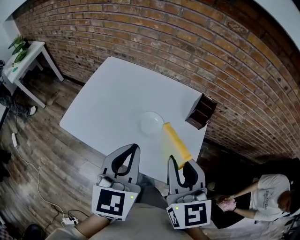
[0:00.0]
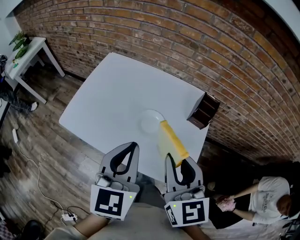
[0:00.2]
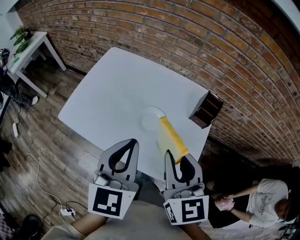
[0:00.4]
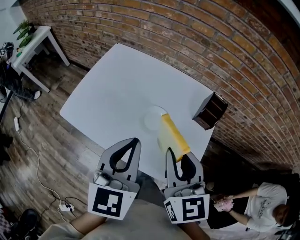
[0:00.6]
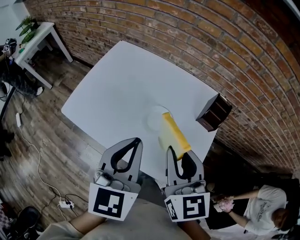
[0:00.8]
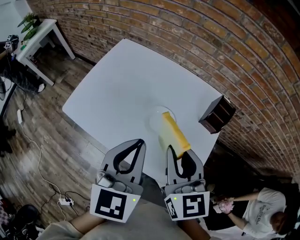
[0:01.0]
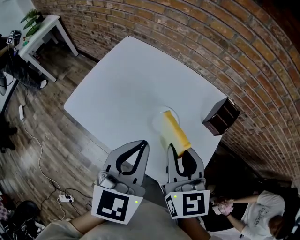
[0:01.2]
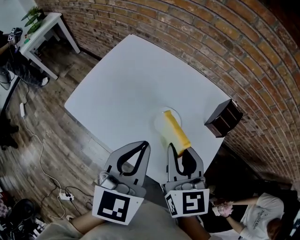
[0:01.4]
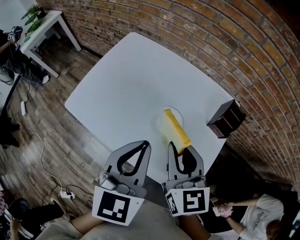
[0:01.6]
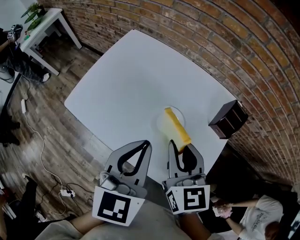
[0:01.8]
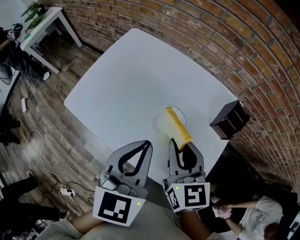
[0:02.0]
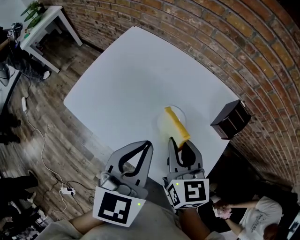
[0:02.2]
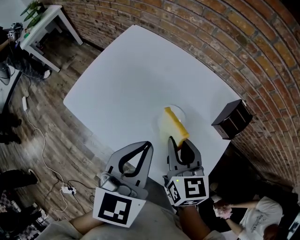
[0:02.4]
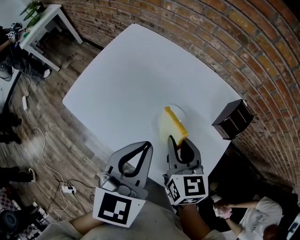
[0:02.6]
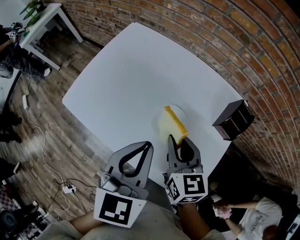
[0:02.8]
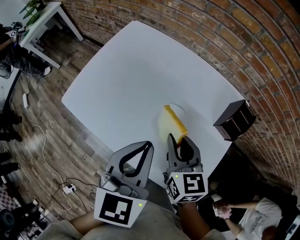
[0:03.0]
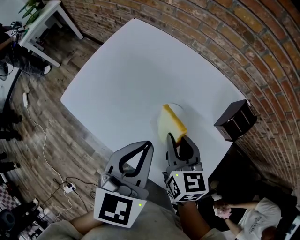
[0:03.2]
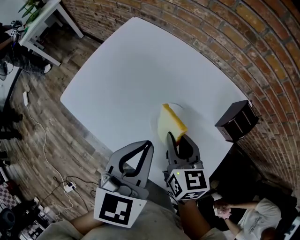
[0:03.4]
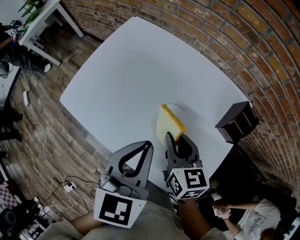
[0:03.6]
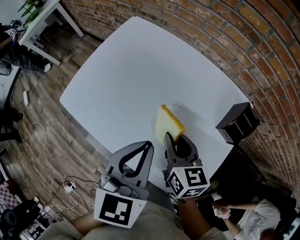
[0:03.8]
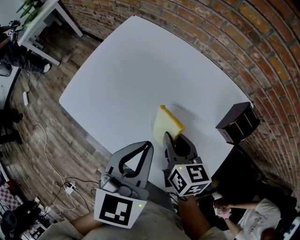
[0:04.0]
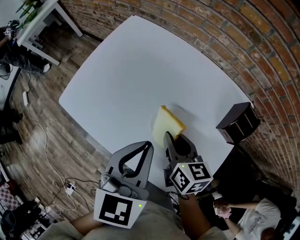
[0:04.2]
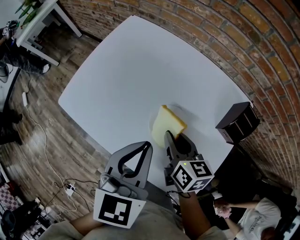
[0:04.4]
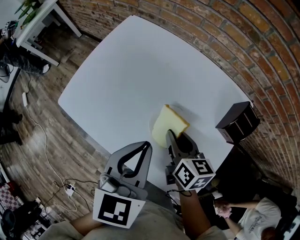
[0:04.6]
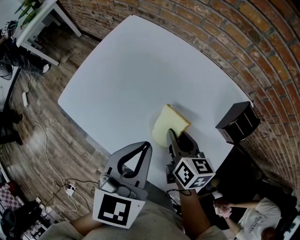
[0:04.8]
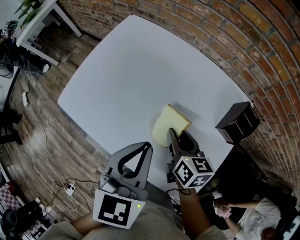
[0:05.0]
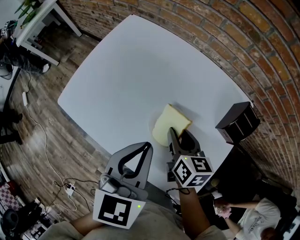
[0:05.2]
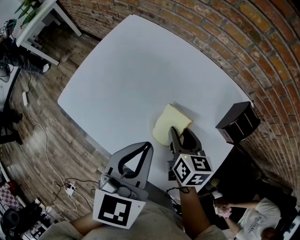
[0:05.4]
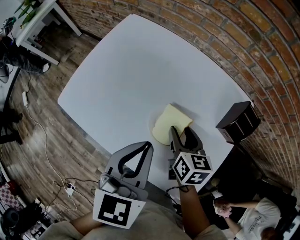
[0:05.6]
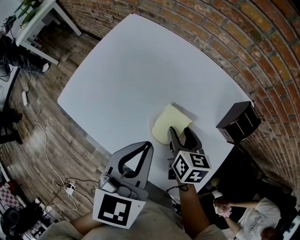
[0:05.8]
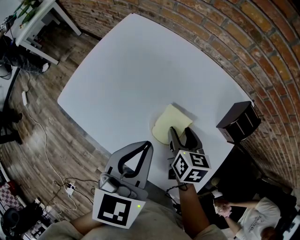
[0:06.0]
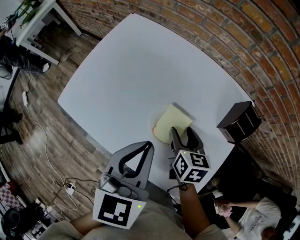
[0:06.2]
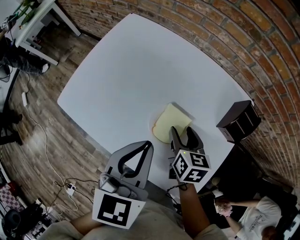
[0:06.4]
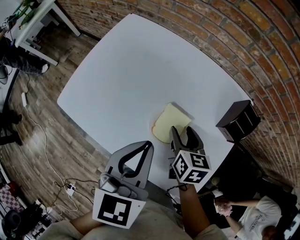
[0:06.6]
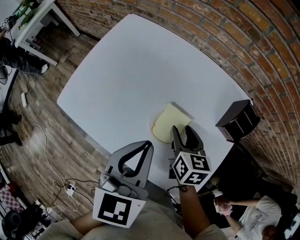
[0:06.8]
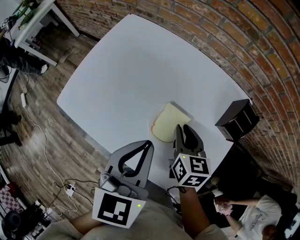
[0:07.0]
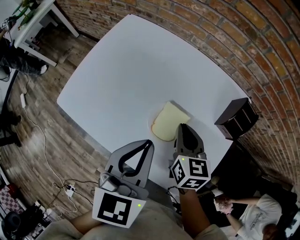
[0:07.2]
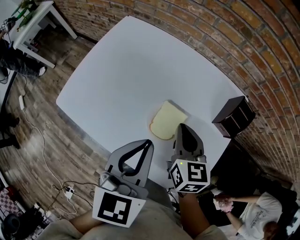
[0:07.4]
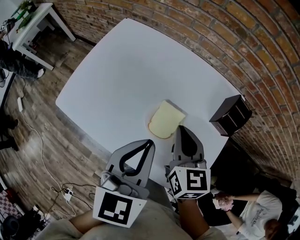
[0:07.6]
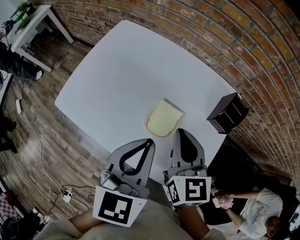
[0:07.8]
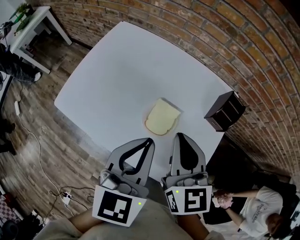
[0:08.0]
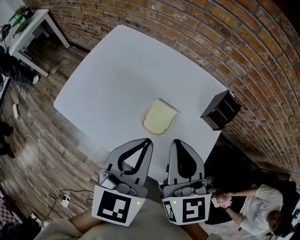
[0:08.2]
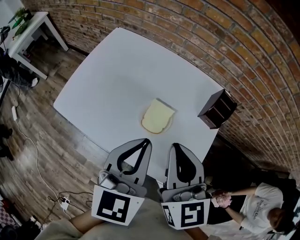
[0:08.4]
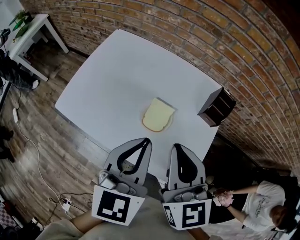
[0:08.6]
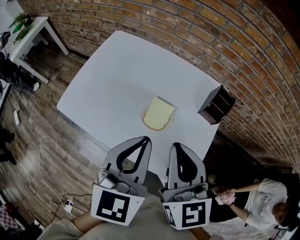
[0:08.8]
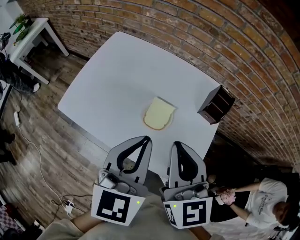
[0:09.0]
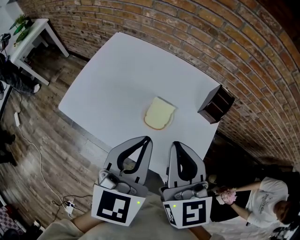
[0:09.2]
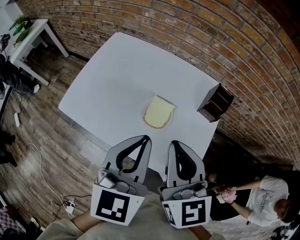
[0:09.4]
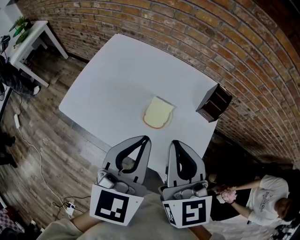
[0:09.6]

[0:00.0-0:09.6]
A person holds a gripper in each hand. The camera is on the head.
0.0 to 1.6 s: The left gripper shifts some 5 cm forward. The right gripper travels forward and downward by about 15 cm.
1.6 to 3.2 s: The left gripper shifts by about 5 cm. The right gripper shifts approximately 10 cm downward.
3.2 to 4.8 s: The right gripper is displaced downward by approximately 5 cm.
4.8 to 6.4 s: The right gripper opens up.
6.4 to 8.0 s: The left gripper ends up approximately 5 cm from where it was. The right gripper shifts about 20 cm upward, rotates about 30 degrees, and closes up.
8.0 to 9.6 s: The left gripper is displaced upward and backward by roughly 5 cm. Meanwhile the right gripper travels backward and upward by approximately 10 cm.

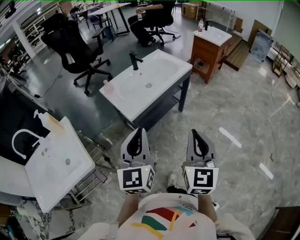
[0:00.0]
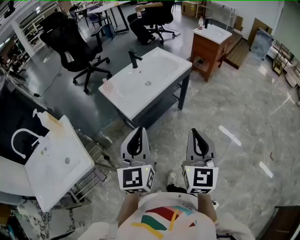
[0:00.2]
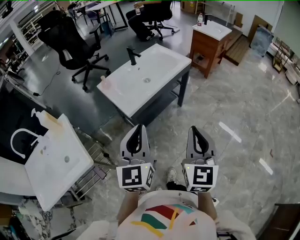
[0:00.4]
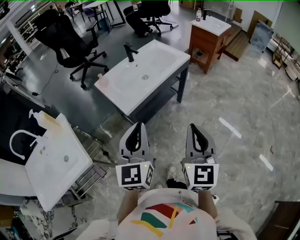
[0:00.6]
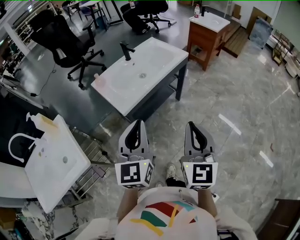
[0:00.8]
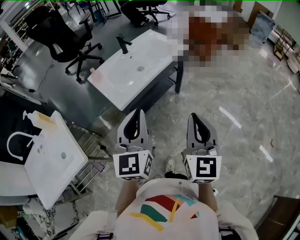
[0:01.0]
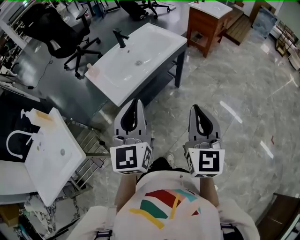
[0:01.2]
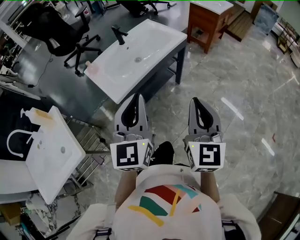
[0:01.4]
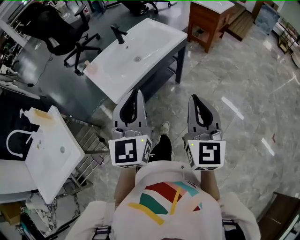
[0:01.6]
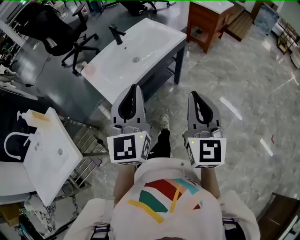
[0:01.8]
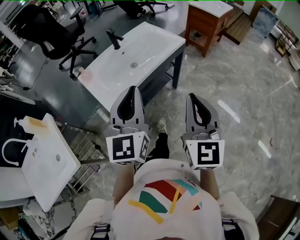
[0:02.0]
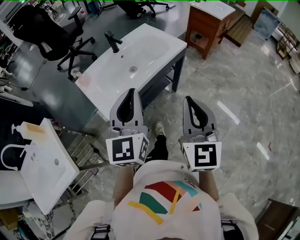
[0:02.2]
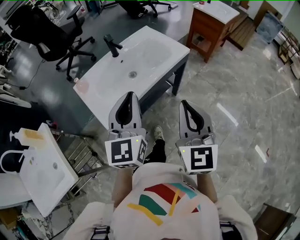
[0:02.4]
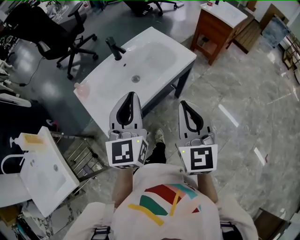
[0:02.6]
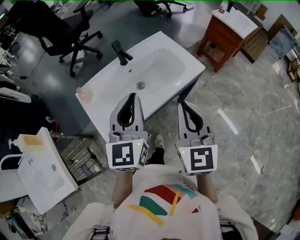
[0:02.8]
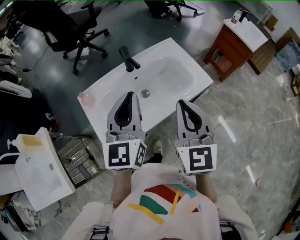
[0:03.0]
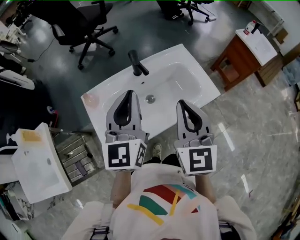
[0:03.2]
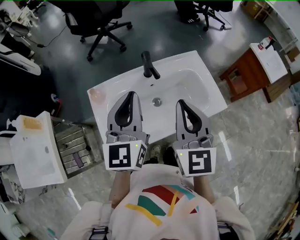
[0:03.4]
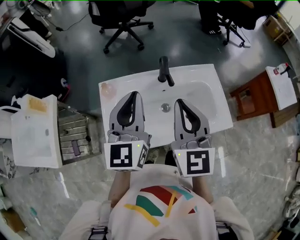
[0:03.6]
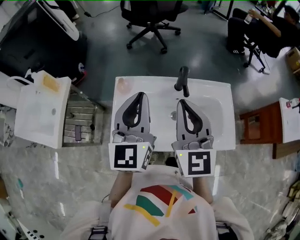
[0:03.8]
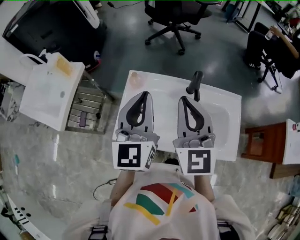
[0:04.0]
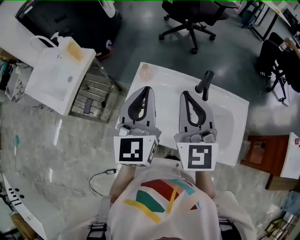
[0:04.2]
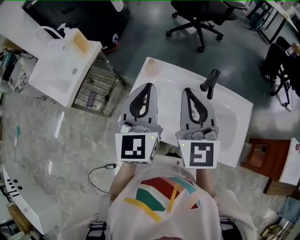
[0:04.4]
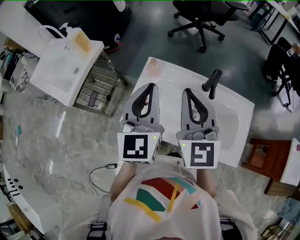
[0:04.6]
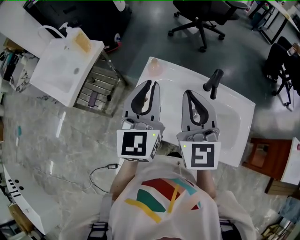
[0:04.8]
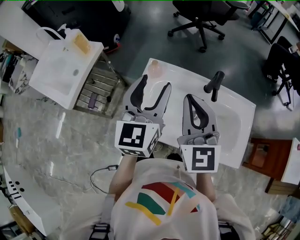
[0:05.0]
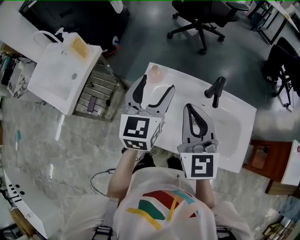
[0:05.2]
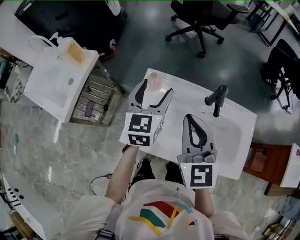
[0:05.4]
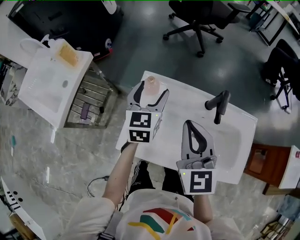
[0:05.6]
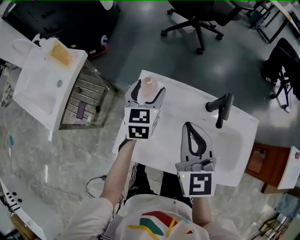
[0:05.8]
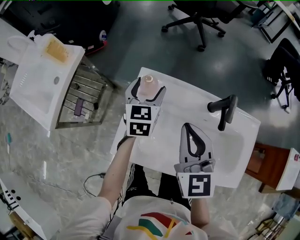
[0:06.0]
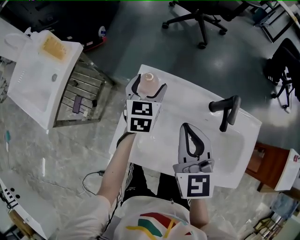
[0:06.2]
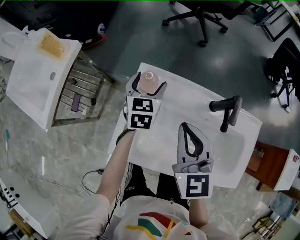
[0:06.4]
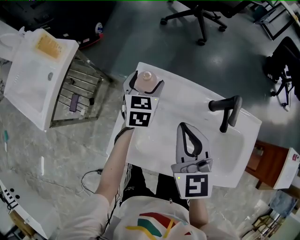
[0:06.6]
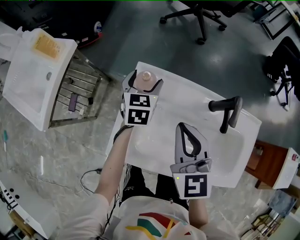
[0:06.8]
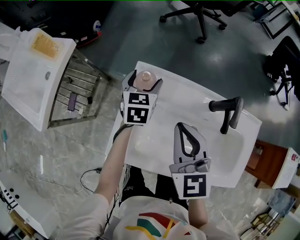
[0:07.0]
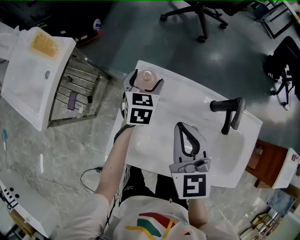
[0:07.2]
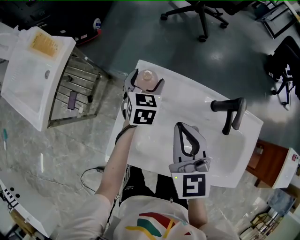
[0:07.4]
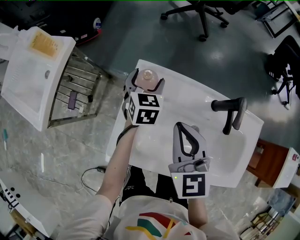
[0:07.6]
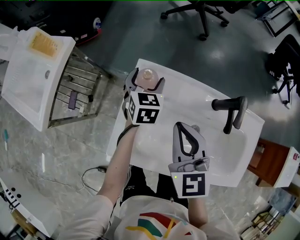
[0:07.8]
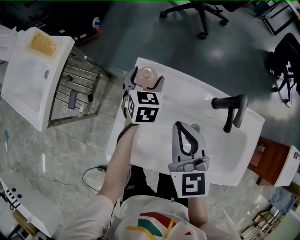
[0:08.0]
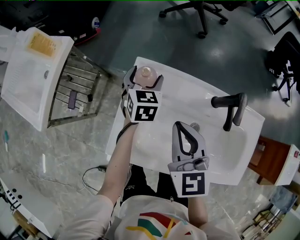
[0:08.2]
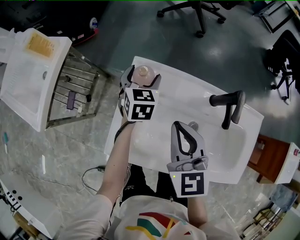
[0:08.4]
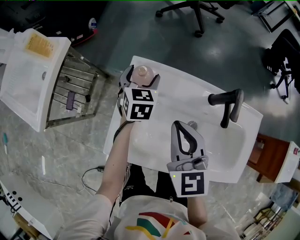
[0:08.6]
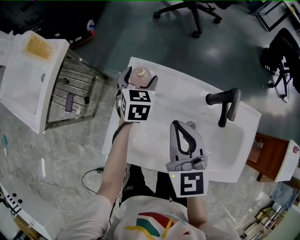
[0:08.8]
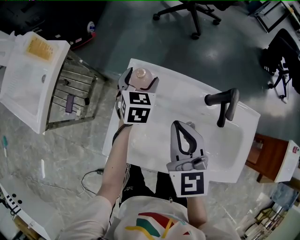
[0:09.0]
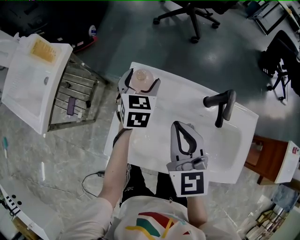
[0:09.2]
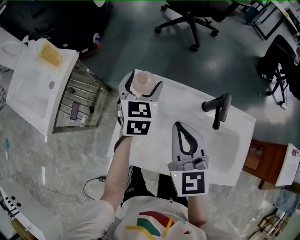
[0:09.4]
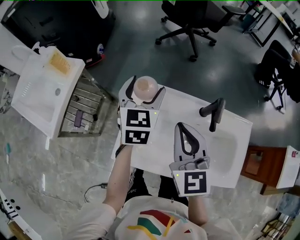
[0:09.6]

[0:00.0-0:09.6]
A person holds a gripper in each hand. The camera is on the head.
0.0 to 1.6 s: The two grippers go about 10 cm forward and to the right.
1.6 to 3.2 s: The grippers both shift forward by roughly 40 cm. The right gripper turns by about 30 degrees.
3.2 to 4.8 s: The right gripper changes place by some 15 cm, and swivels about 50 degrees, while the left gripper shifts by approximately 10 cm, and changes its angle by approximately 40 degrees.
4.8 to 6.4 s: The right gripper is displaced downward and forward by about 15 cm, while the left gripper shifts approximately 35 cm downward and forward, rotates about 30 degrees, and opens its fingers.
6.4 to 8.0 s: The grippers move only a little.
8.0 to 9.6 s: The right gripper travels upward by roughly 10 cm. The left gripper travels upward by approximately 20 cm.

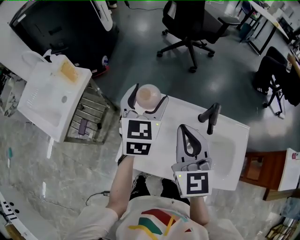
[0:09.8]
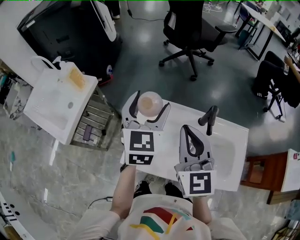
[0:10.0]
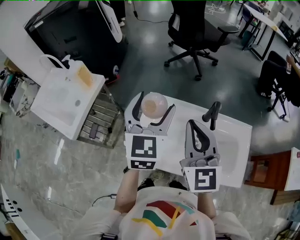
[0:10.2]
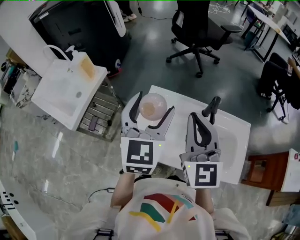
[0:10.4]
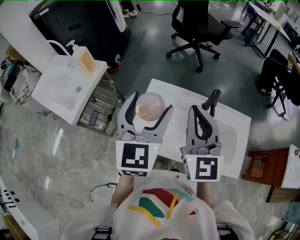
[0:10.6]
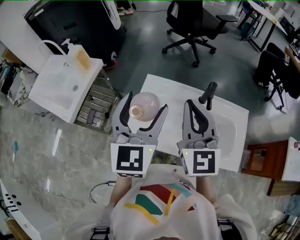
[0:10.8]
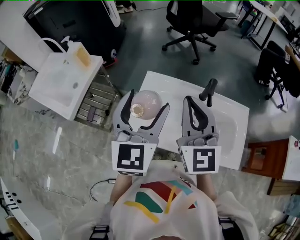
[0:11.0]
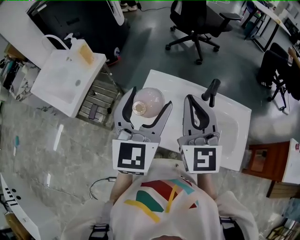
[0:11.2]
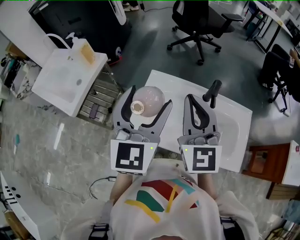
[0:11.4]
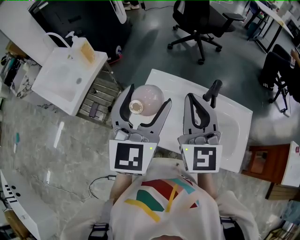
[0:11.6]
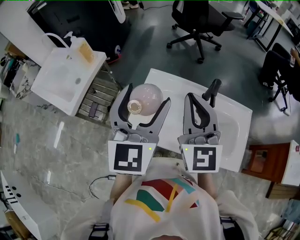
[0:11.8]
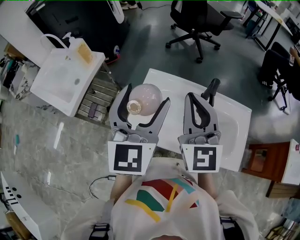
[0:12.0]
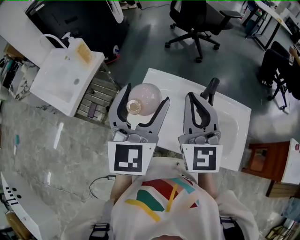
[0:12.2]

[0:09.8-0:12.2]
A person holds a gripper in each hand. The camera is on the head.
9.8 to 11.0 s: The left gripper travels backward and upward by approximately 20 cm. The right gripper moves upward and backward, roughly 10 cm.
11.0 to 12.2 s: There are only small adjustments of the grippers.

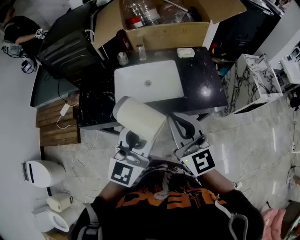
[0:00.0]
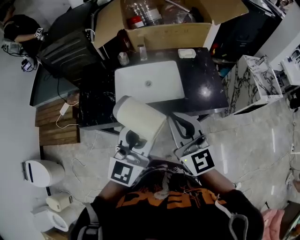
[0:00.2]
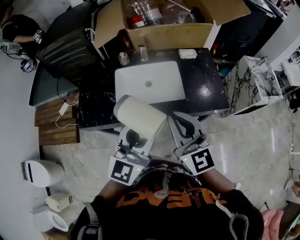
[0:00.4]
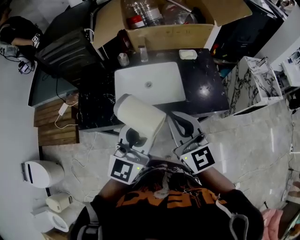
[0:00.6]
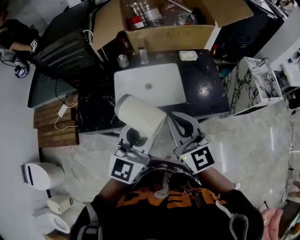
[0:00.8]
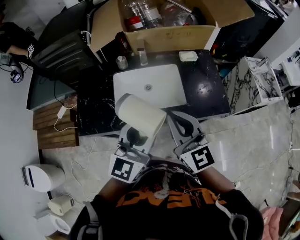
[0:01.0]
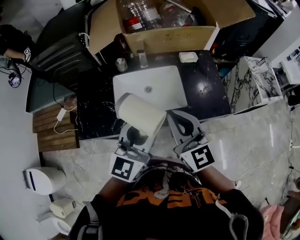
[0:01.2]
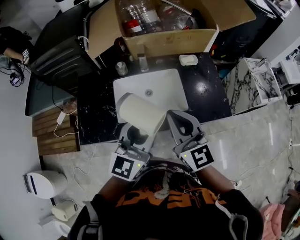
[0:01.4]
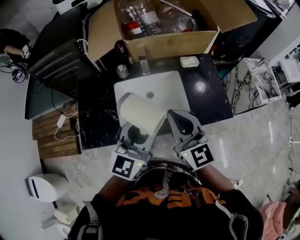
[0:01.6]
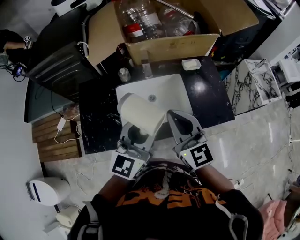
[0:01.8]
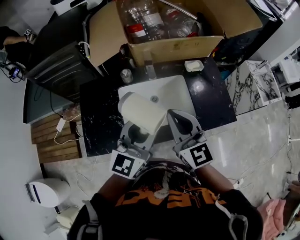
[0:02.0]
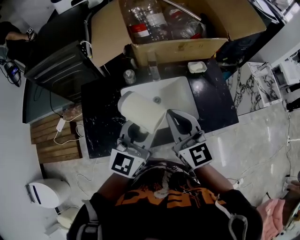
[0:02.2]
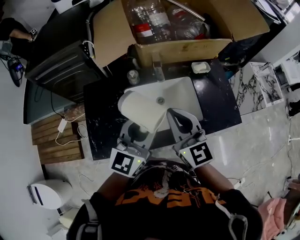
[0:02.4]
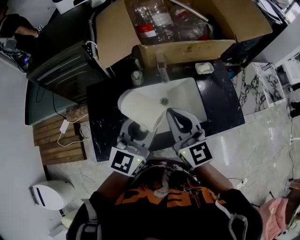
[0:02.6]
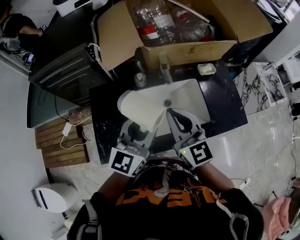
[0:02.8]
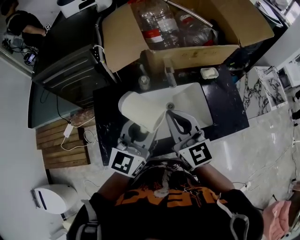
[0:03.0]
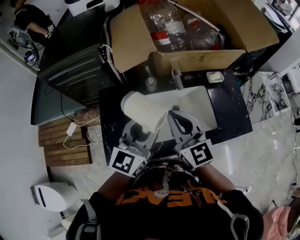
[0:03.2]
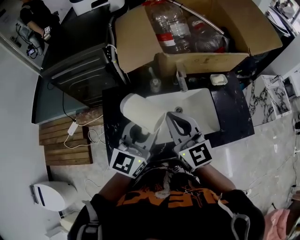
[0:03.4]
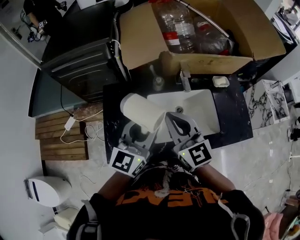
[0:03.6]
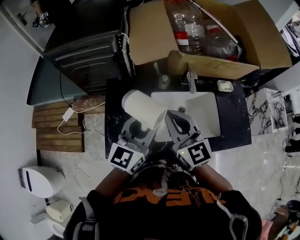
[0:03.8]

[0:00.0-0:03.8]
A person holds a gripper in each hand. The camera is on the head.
0.0 to 1.2 s: The grippers both shift forward by approximately 10 cm.
1.2 to 2.6 s: Both grippers travel together to the left and forward, roughly 20 cm.
2.6 to 3.8 s: The grippers both shift to the left by about 10 cm.
